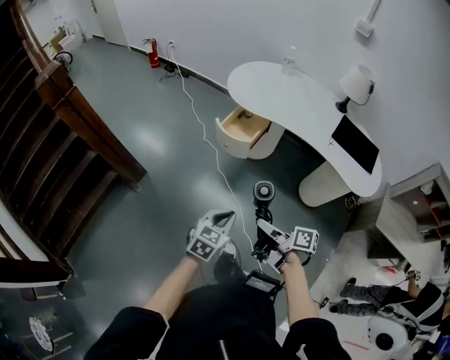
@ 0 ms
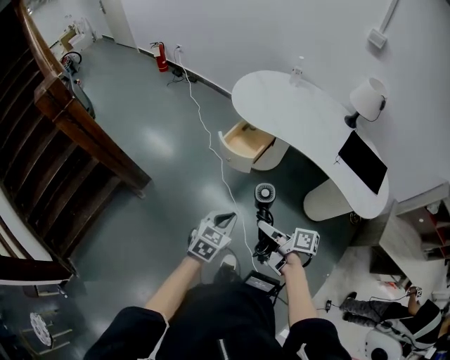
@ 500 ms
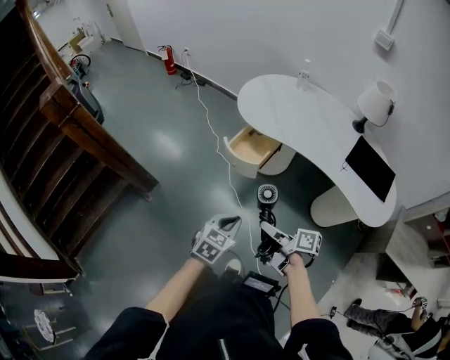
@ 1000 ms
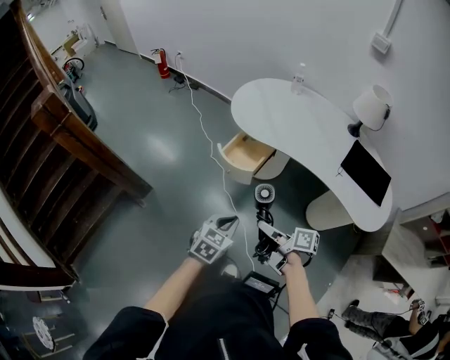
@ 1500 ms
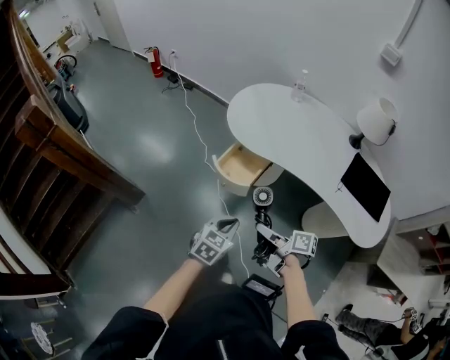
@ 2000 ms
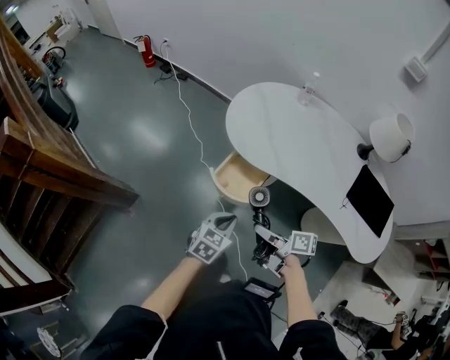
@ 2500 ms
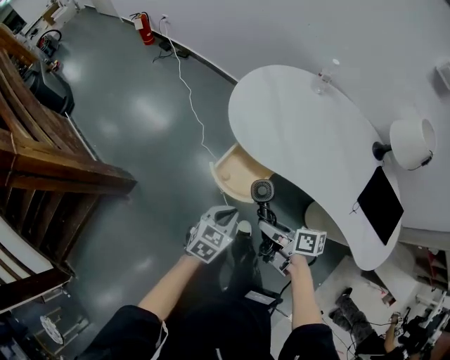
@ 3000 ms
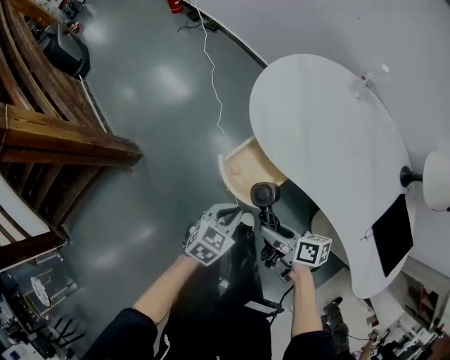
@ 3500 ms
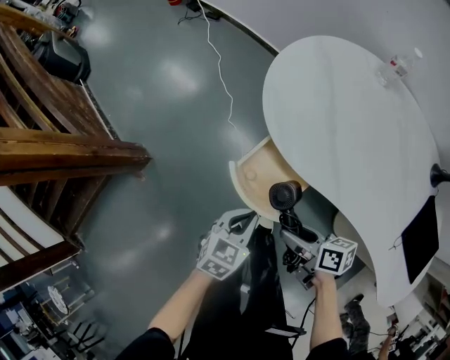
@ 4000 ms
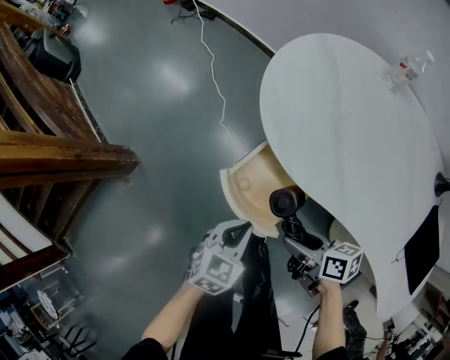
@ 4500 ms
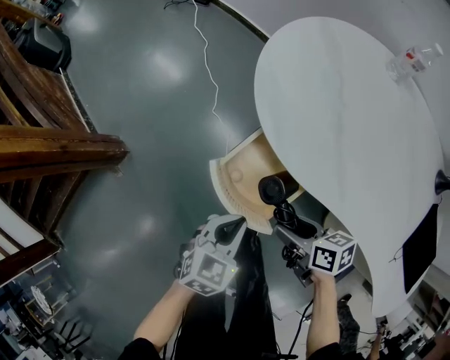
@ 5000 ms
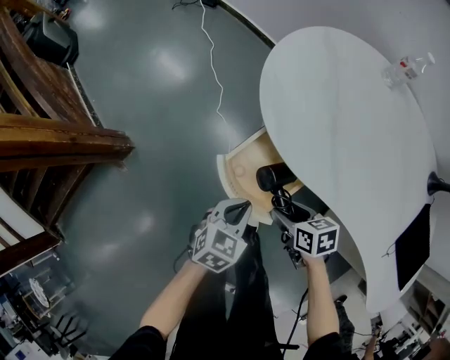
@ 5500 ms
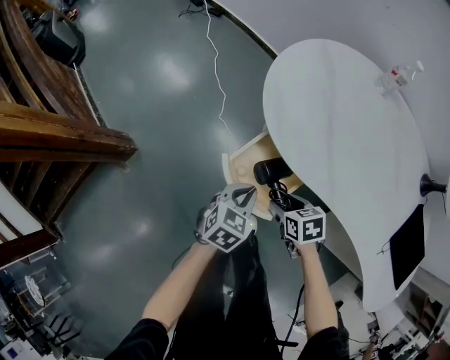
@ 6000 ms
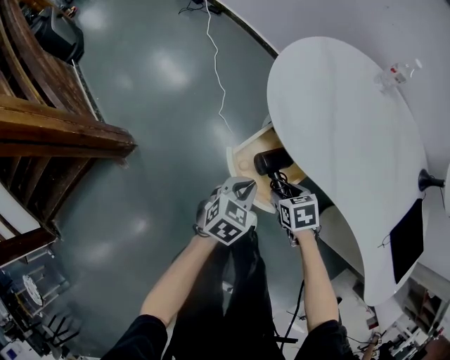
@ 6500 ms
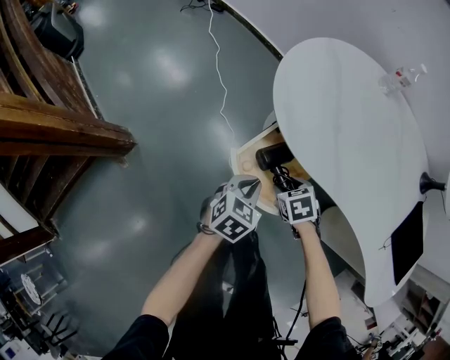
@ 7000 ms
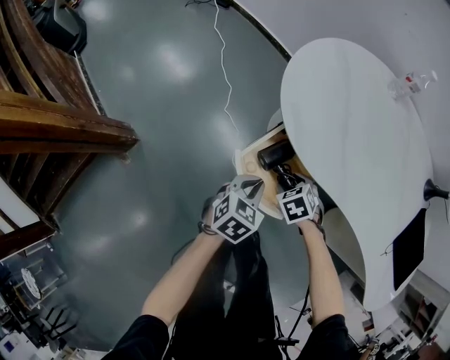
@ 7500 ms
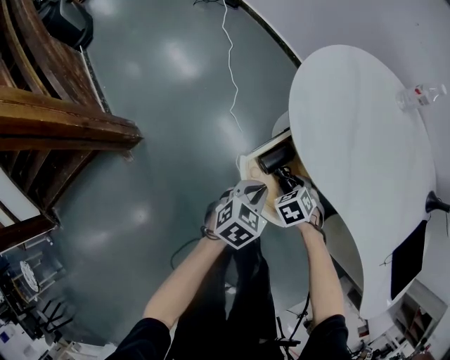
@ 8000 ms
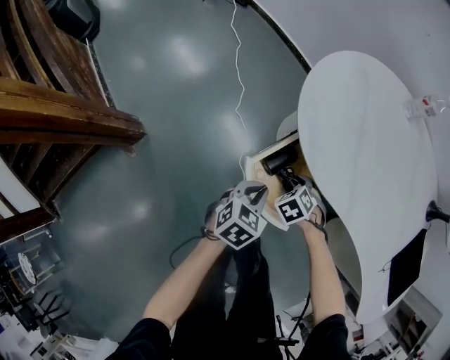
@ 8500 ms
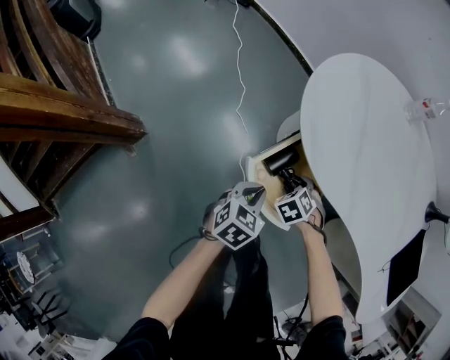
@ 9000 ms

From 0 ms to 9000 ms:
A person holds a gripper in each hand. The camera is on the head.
From 0 ms to 2000 ms: Both grippers travel together forward, about 20 cm.
From 2000 ms to 4500 ms: Both grippers move forward and downward, roughly 30 cm. The right gripper rotates approximately 30 degrees.
From 4500 ms to 7000 ms: The right gripper heads downward and forward, covering some 10 cm, and points its fingers about 40 degrees further downward.
From 7000 ms to 9000 ms: The right gripper shifts roughly 5 cm downward, and changes its angle by about 30 degrees.

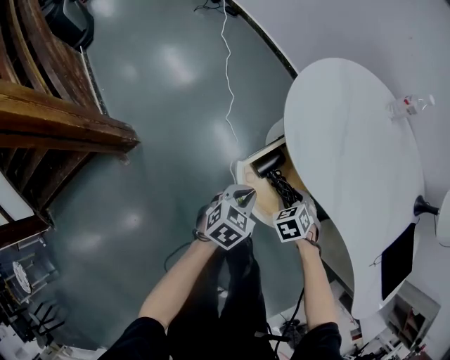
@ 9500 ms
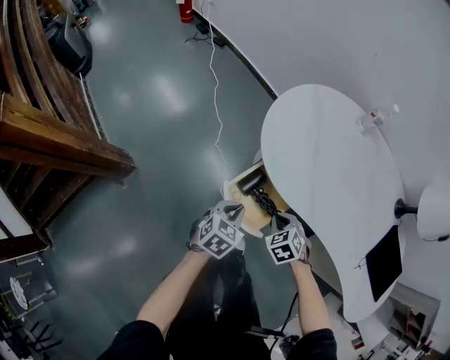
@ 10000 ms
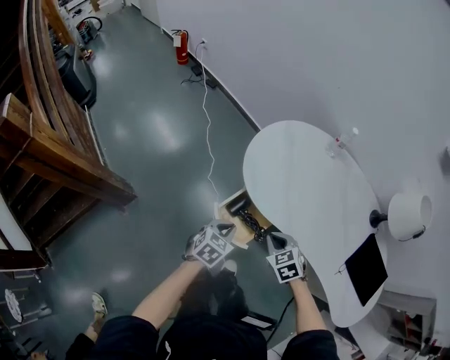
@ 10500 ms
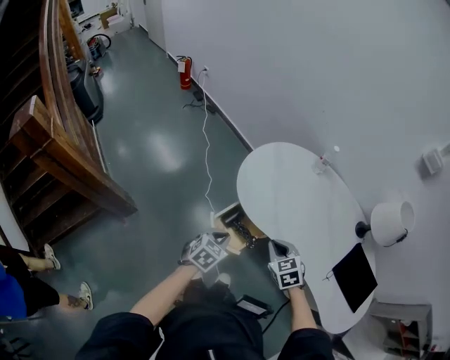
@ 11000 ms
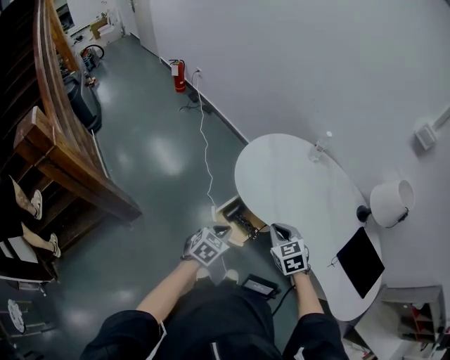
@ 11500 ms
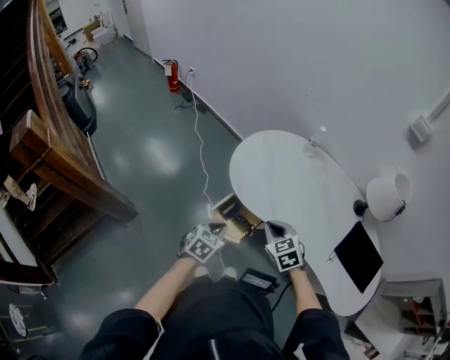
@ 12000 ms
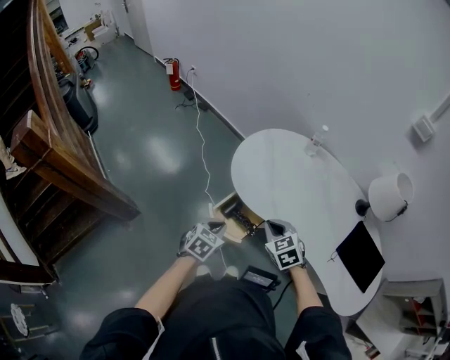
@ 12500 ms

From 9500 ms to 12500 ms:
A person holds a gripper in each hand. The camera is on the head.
From 9500 ms to 11000 ms: The right gripper travels upward by about 30 cm, turns by about 30 degrees, and closes; the left gripper heads upward, covering some 20 cm.
From 11000 ms to 12500 ms: There are only small adjustments of the grippers.

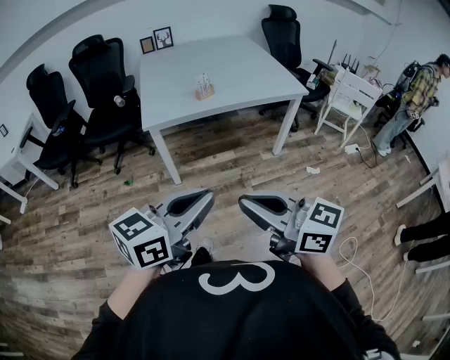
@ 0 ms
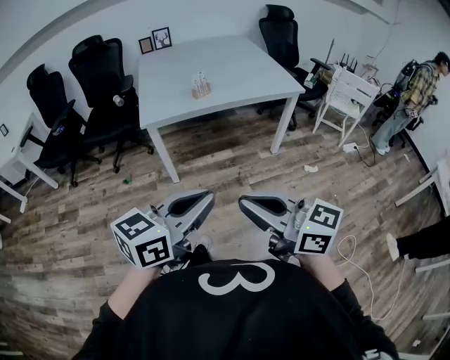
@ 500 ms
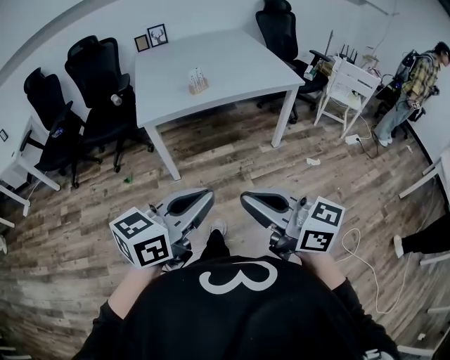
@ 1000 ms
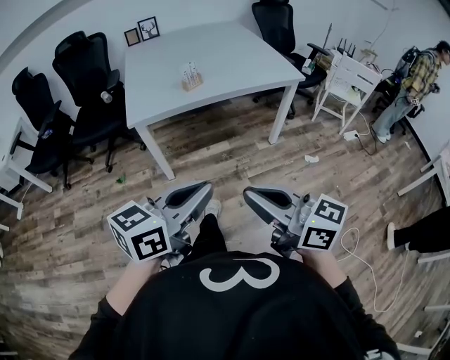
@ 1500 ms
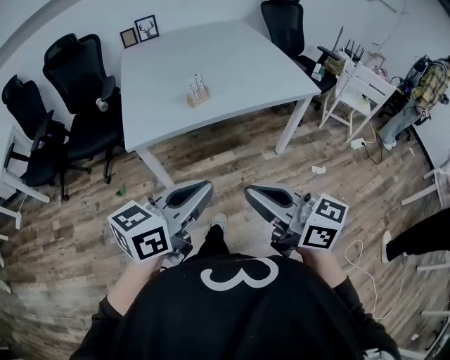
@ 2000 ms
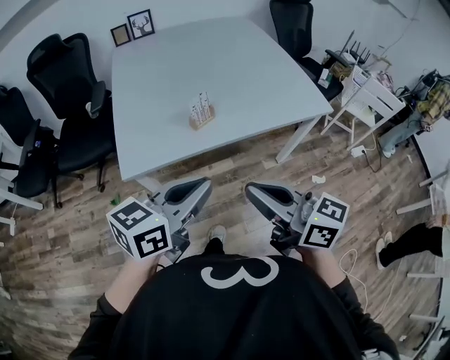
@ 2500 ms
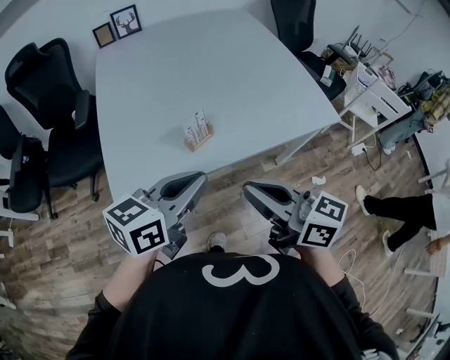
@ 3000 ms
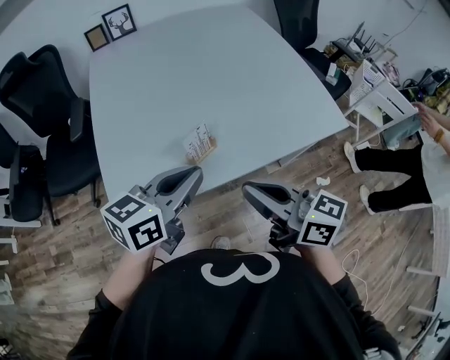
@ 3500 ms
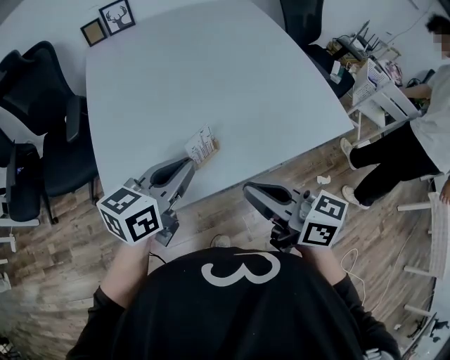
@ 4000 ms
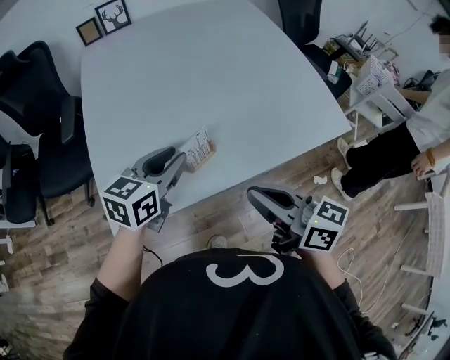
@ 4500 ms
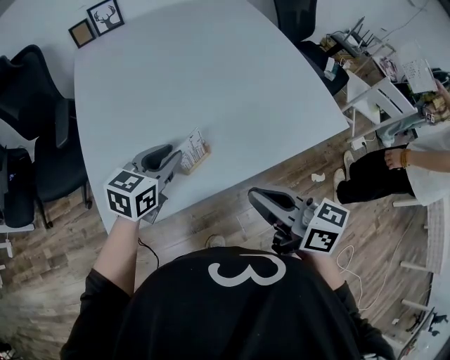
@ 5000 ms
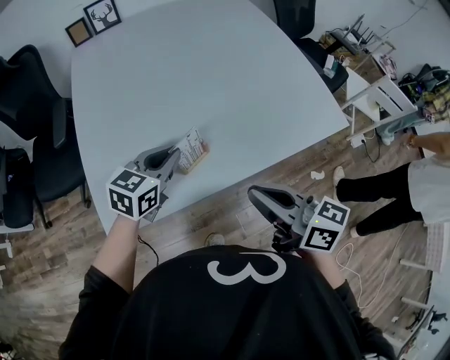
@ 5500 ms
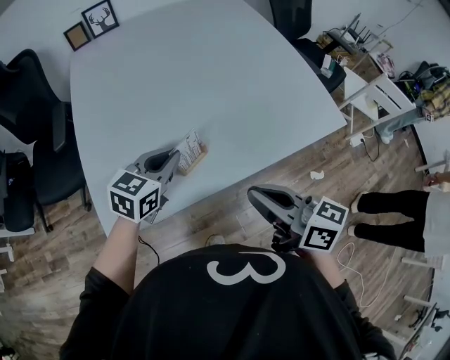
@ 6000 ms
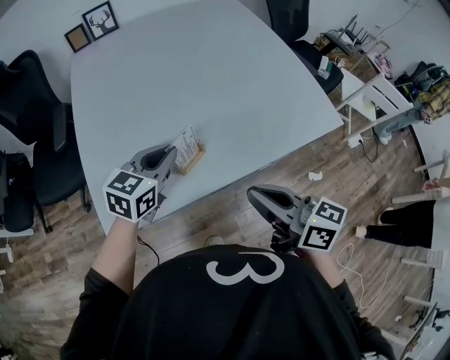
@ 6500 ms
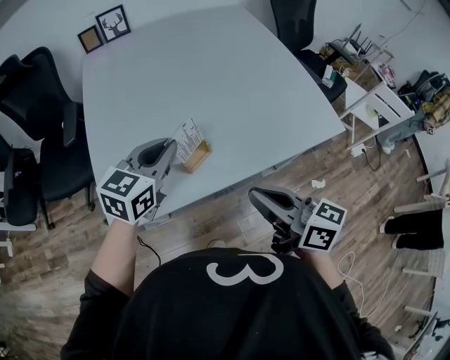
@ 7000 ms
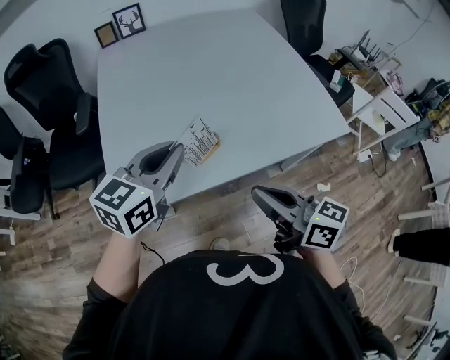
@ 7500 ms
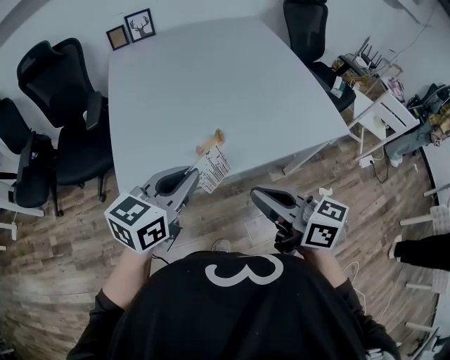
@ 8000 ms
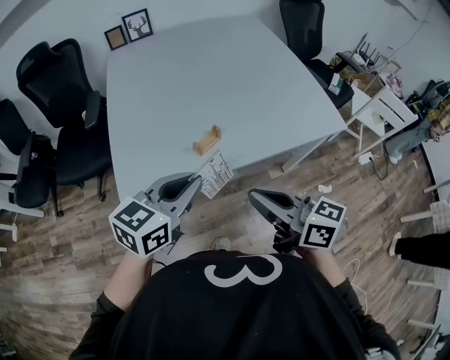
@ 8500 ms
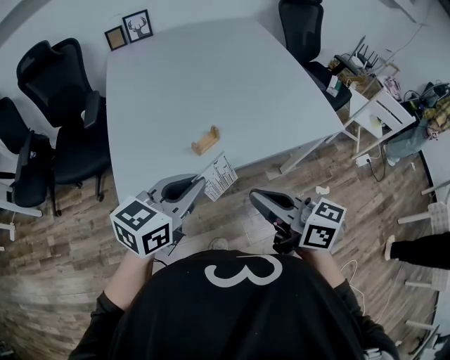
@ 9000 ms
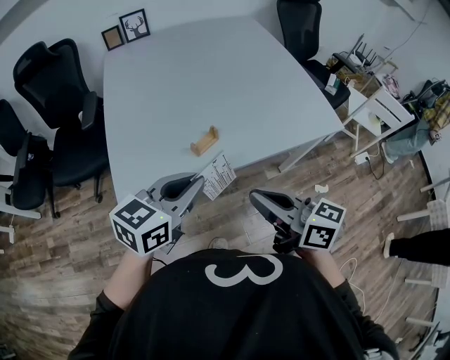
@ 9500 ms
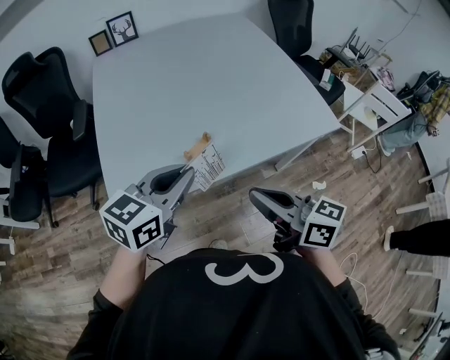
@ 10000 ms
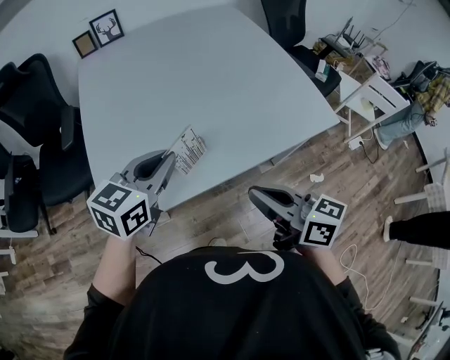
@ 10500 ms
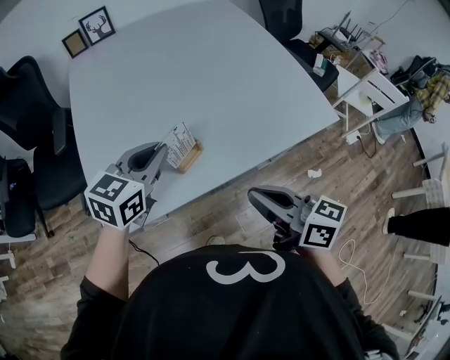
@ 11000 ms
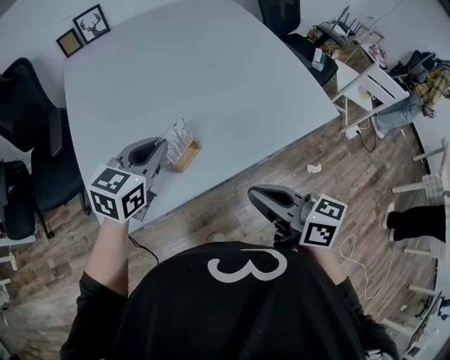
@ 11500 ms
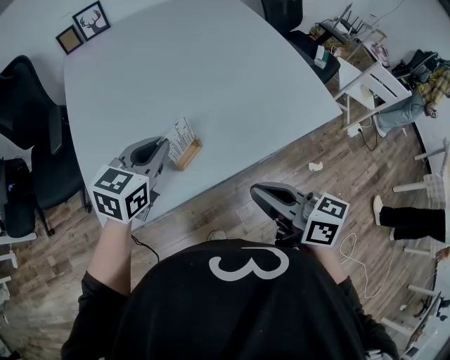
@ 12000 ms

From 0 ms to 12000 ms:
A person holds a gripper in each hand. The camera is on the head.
From 0 ms to 2000 ms: Both grippers move forward, roughly 20 cm.
From 2000 ms to 4000 ms: The two grippers go about 40 cm forward.
From 4000 ms to 6000 ms: The left gripper goes approximately 10 cm downward and forward, and opens, then closes again.
From 6000 ms to 8000 ms: The left gripper is displaced backward and upward by approximately 20 cm; the right gripper goes roughly 5 cm backward.
From 8000 ms to 10000 ms: There are only small adjustments of the grippers.
From 10000 ms to 12000 ms: The right gripper moves forward, roughly 5 cm. The left gripper is displaced forward and downward by approximately 15 cm.

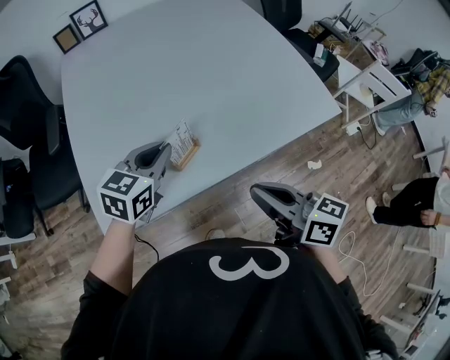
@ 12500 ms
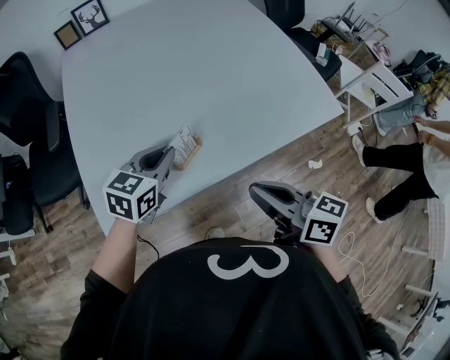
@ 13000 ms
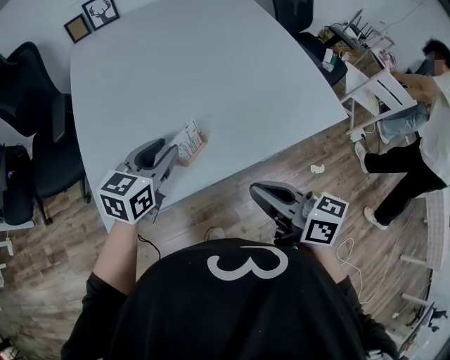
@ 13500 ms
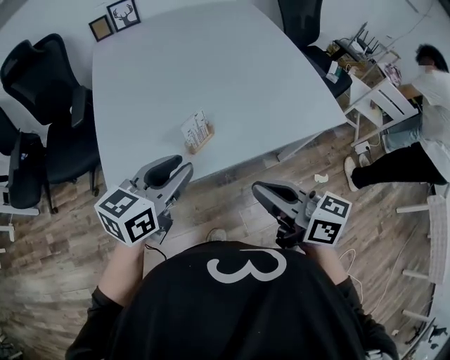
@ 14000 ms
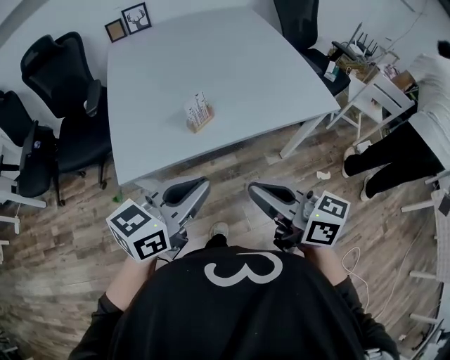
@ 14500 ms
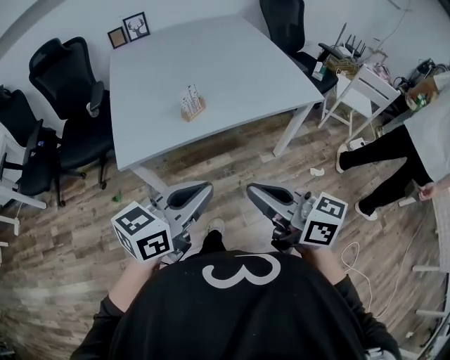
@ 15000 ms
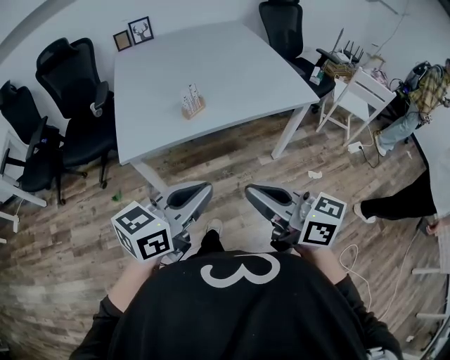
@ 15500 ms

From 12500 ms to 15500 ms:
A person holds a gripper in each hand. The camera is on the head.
From 12500 ms to 14000 ms: The right gripper changes place by roughly 5 cm, while the left gripper is displaced backward and upward by some 15 cm, and opens.
From 14000 ms to 15500 ms: The two grippers go roughly 25 cm backward. The left gripper closes.
